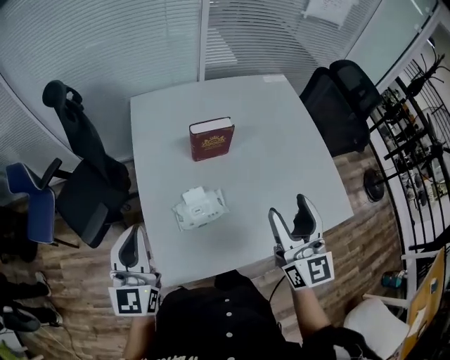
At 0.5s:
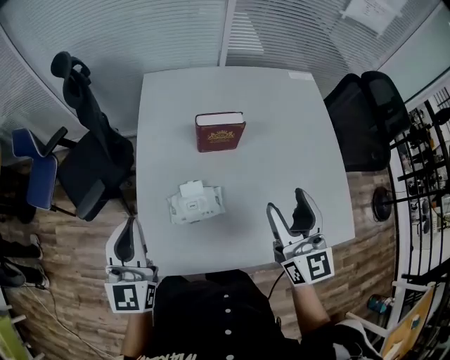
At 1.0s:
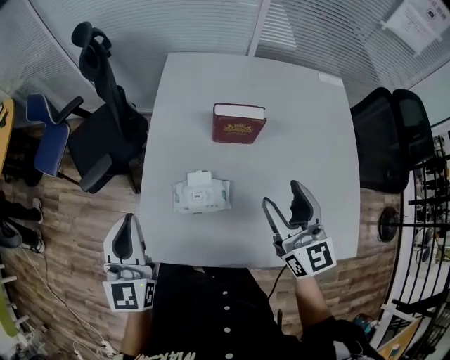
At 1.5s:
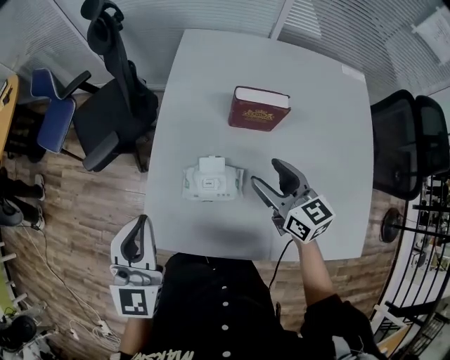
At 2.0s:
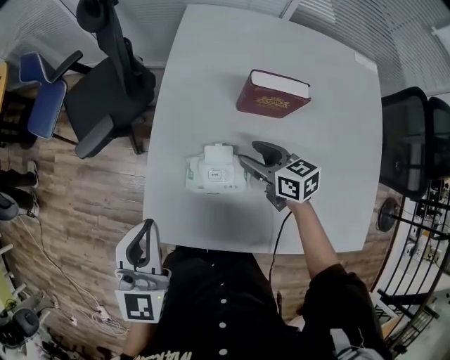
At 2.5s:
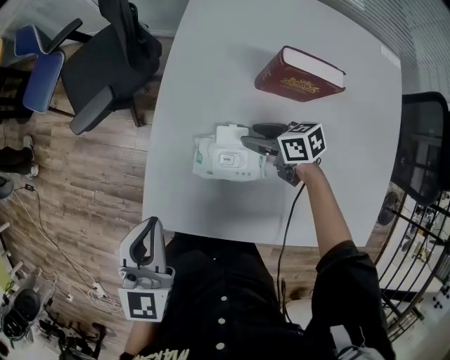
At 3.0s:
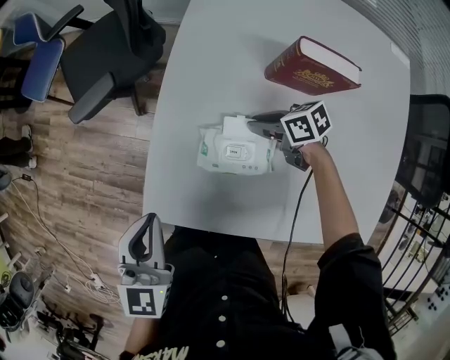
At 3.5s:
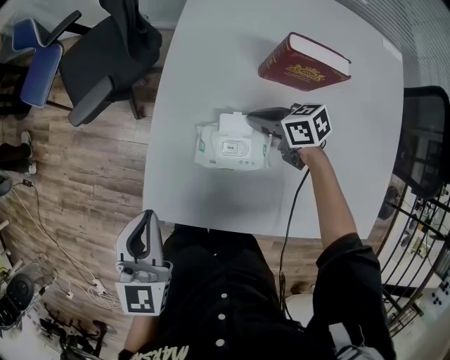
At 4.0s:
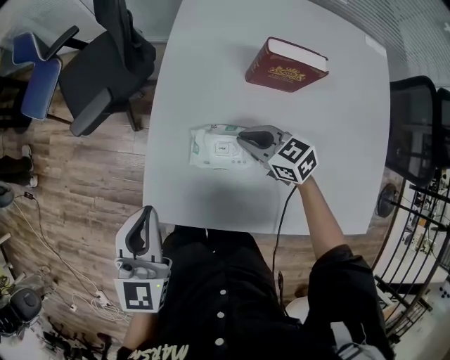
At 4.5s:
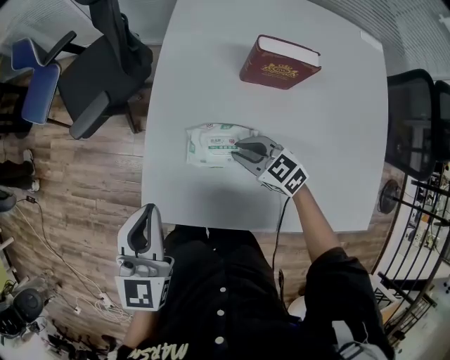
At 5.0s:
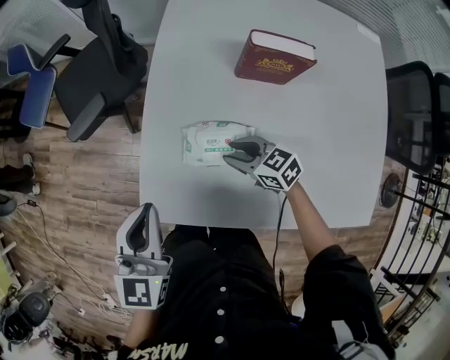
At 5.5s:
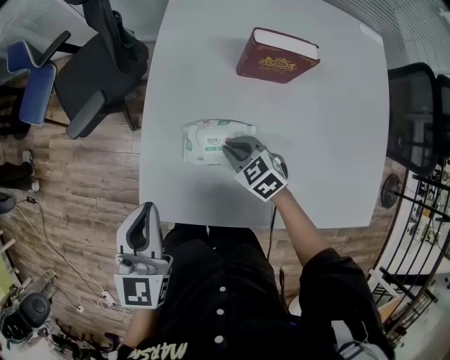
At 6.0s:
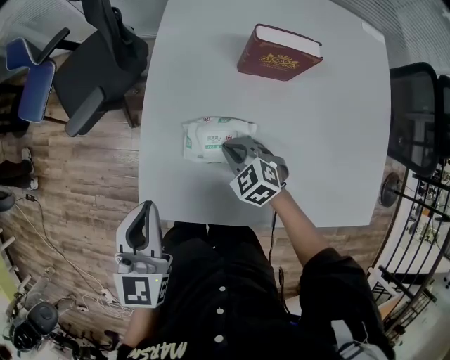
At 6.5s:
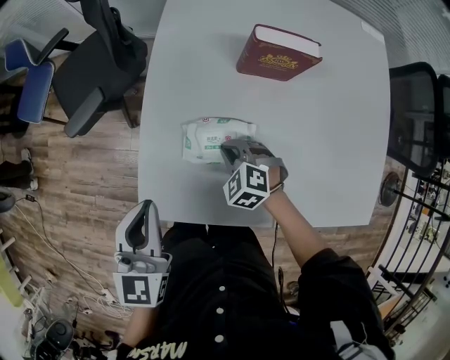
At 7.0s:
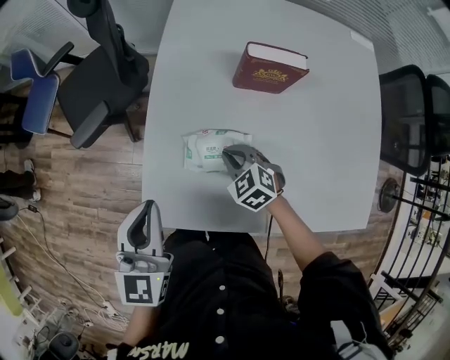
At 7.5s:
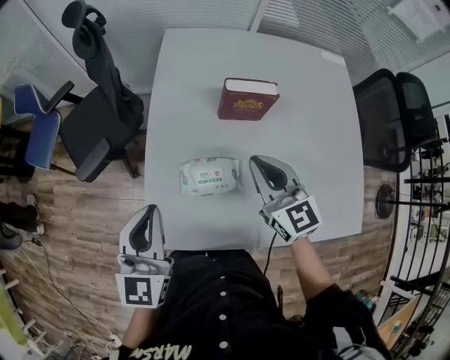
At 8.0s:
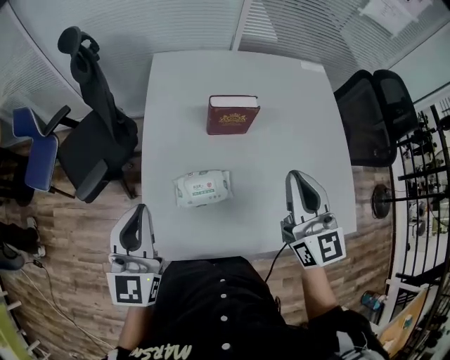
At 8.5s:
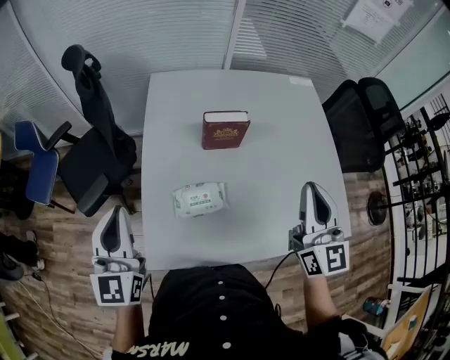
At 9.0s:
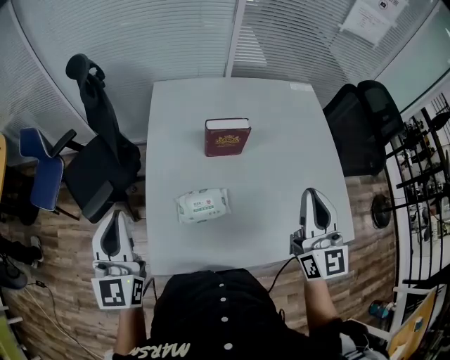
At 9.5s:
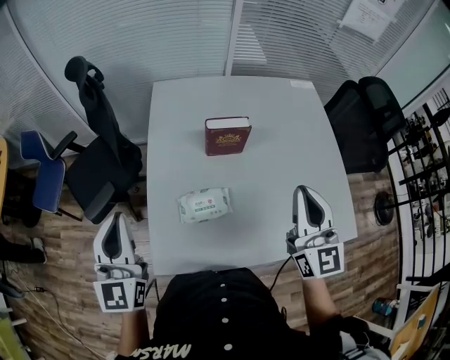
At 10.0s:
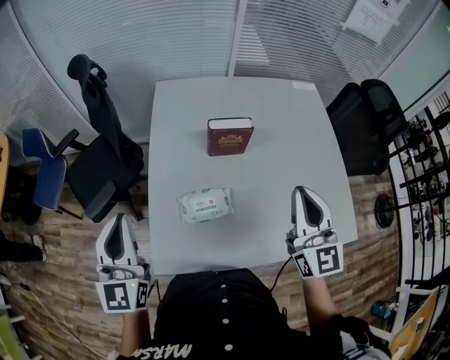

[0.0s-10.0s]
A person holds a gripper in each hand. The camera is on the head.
0.0s to 2.0s: The left gripper heads downward, covering roughly 10 cm, and rotates approximately 20 degrees, while the right gripper moves downward, approximately 25 cm, and tips its fingers downward by about 30 degrees.
2.0s to 4.0s: The right gripper moves to the left, approximately 5 cm, rotates some 20 degrees, and closes its fingers.
4.0s to 6.0s: The right gripper changes place by about 5 cm, rotates approximately 30 degrees, and opens, then closes again.
6.0s to 8.0s: The right gripper travels upward and to the right by roughly 40 cm, and tilts its fingers approximately 50 degrees upward; the left gripper moves upward, some 10 cm, and changes its angle by roughly 20 degrees.
8.0s to 10.0s: The left gripper shifts about 5 cm upward.

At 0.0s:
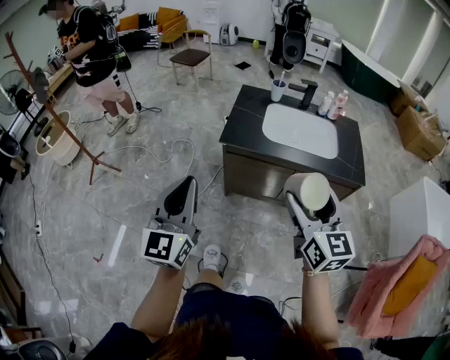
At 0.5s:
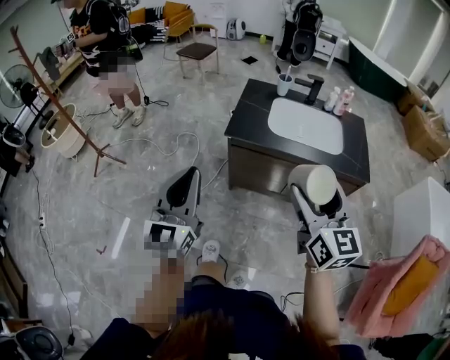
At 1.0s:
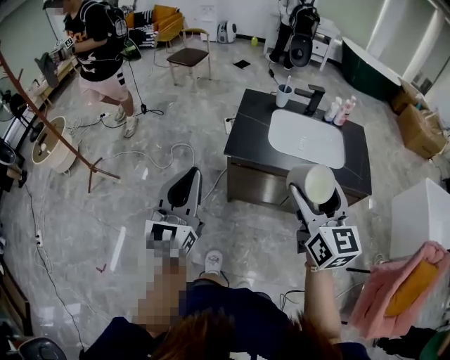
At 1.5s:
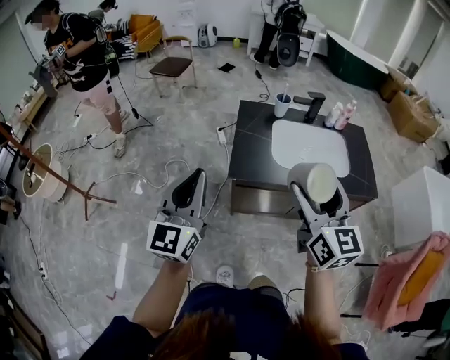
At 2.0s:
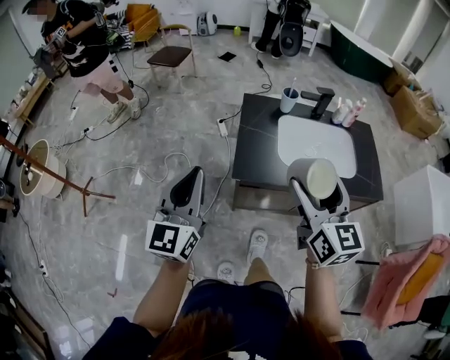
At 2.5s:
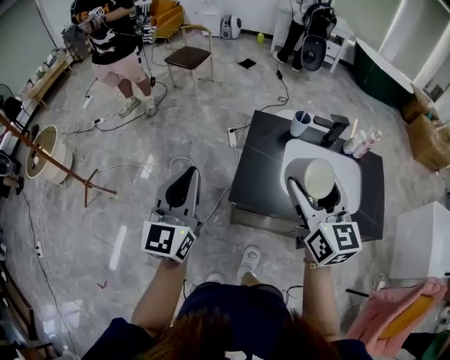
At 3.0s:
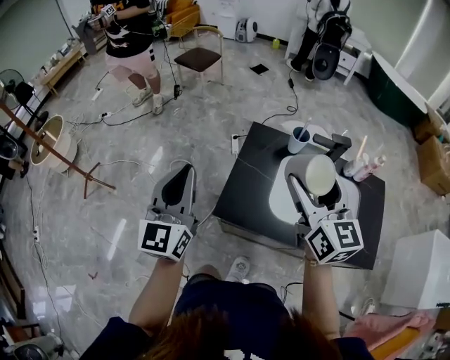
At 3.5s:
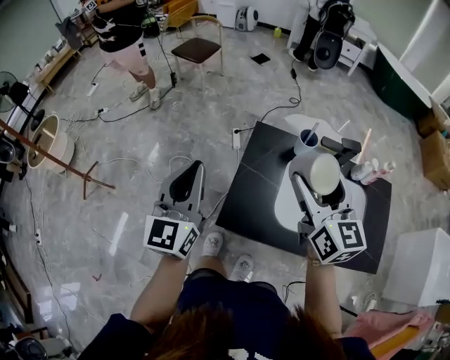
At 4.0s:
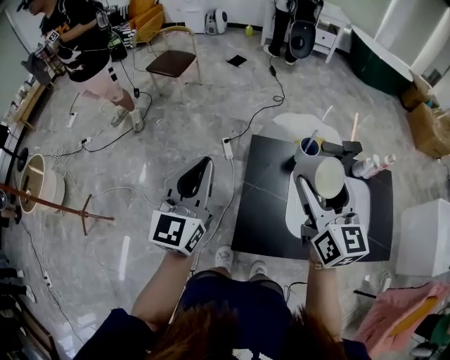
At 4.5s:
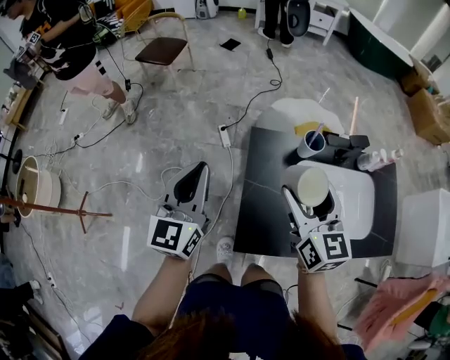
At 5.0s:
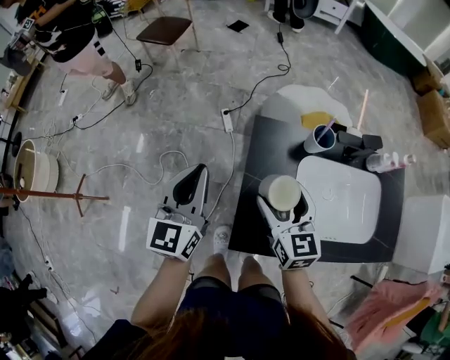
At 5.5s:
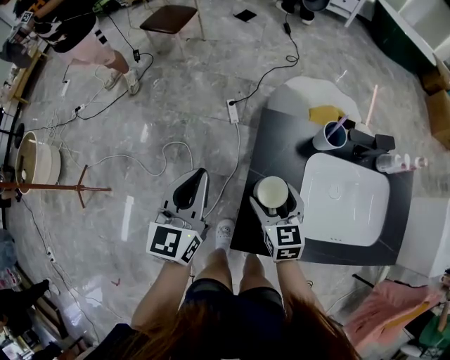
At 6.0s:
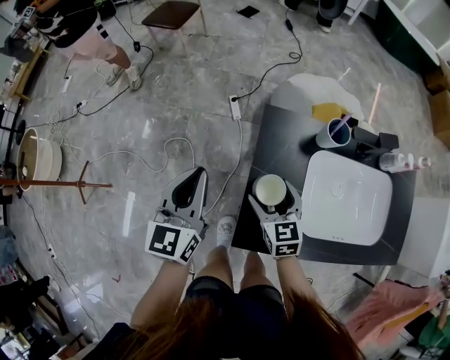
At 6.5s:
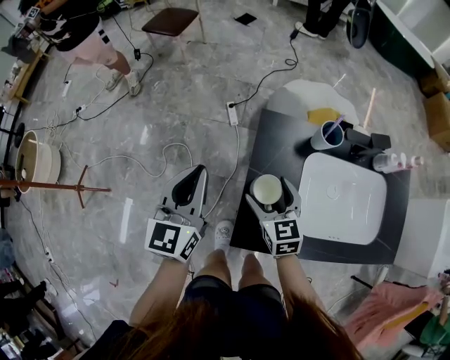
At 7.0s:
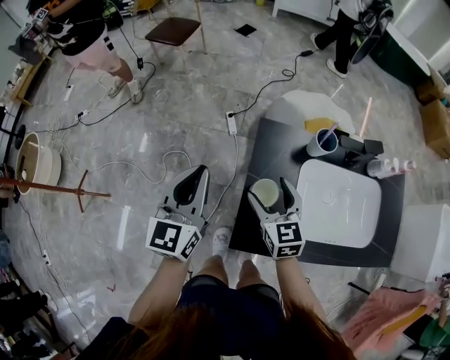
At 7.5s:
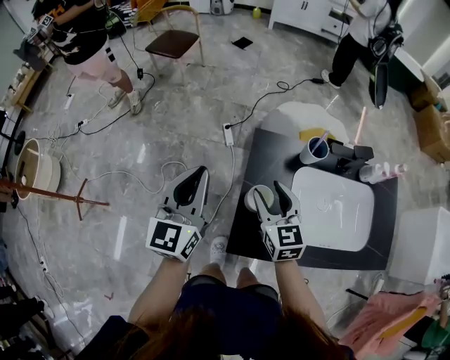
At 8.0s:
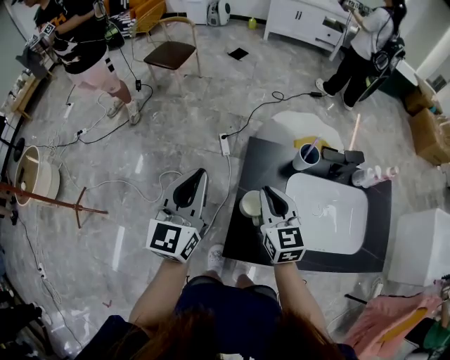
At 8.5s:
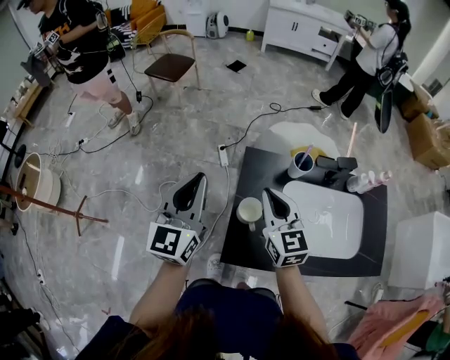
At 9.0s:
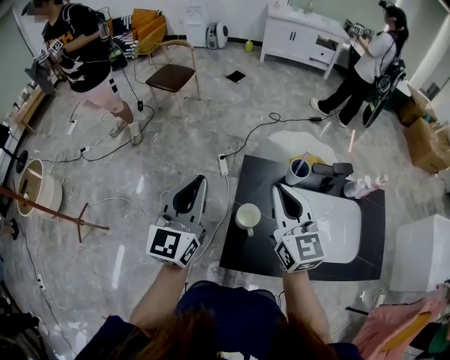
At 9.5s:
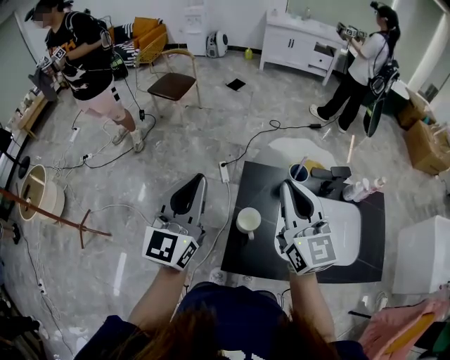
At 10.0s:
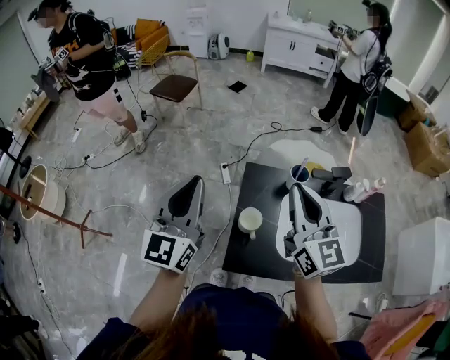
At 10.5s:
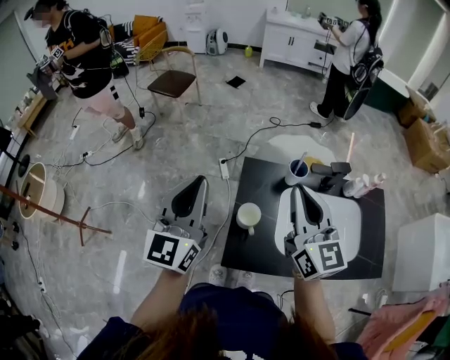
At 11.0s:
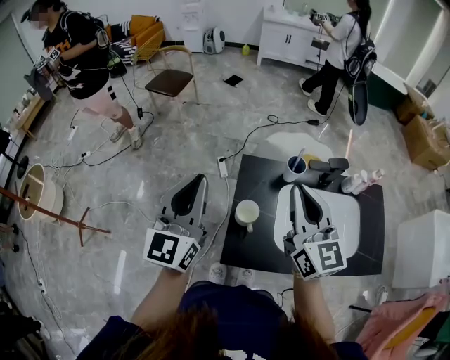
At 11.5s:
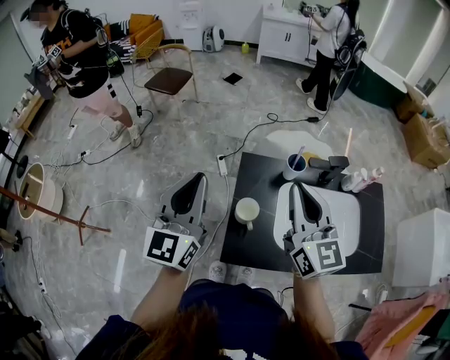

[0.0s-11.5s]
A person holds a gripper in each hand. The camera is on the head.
0.0s to 2.0s: The left gripper is displaced forward by some 30 cm. The right gripper heads forward and to the left, covering approximately 30 cm.
2.0s to 4.0s: Both grippers travel together forward, about 35 cm.
4.0s to 6.0s: The right gripper goes approximately 35 cm downward, and turns by about 30 degrees, while the left gripper goes some 20 cm downward.
6.0s to 7.5s: Both grippers travel together upward, some 10 cm. The right gripper closes its fingers.
7.5s to 9.5s: The right gripper heads upward, covering roughly 25 cm, changes its angle by some 20 degrees, and closes, while the left gripper heads upward, covering roughly 15 cm.
9.5s to 11.5s: There are only small adjustments of the grippers.

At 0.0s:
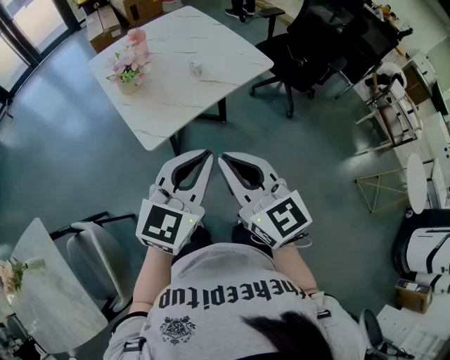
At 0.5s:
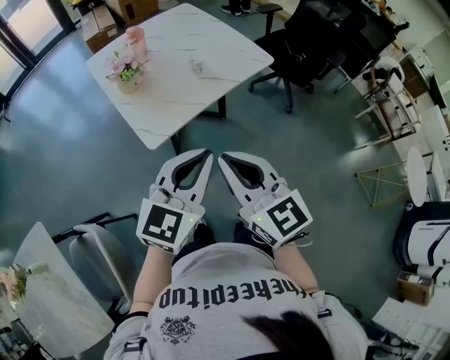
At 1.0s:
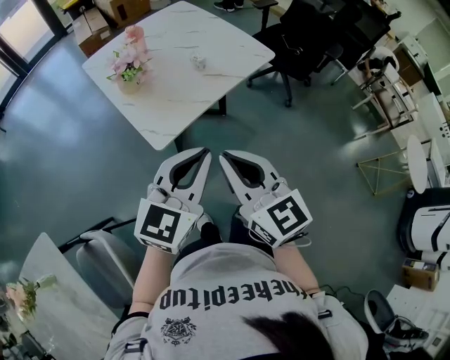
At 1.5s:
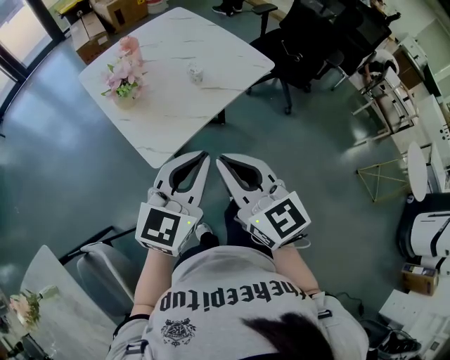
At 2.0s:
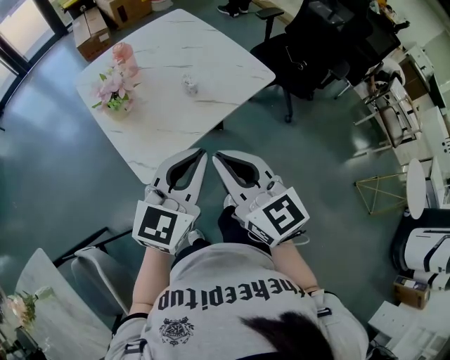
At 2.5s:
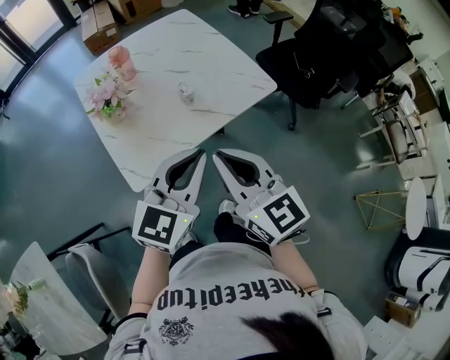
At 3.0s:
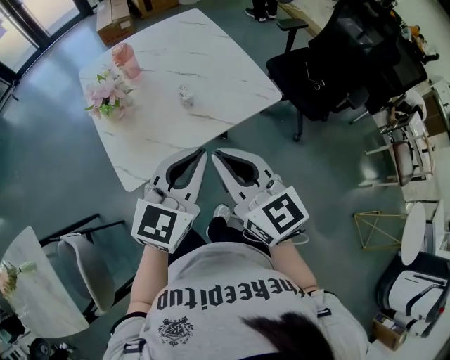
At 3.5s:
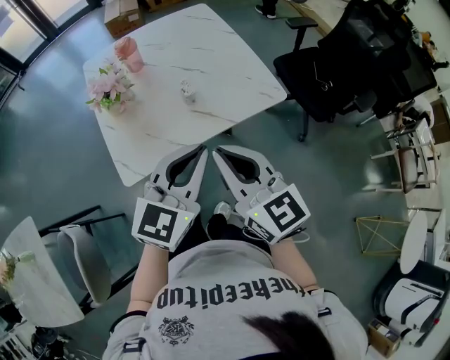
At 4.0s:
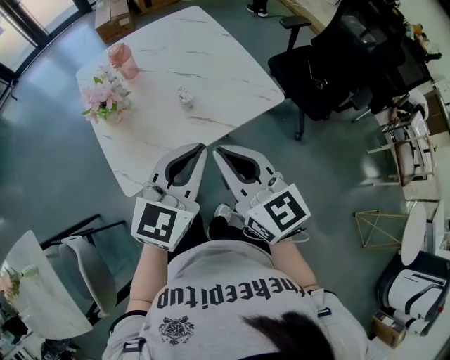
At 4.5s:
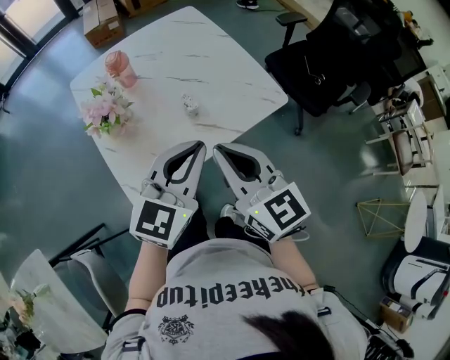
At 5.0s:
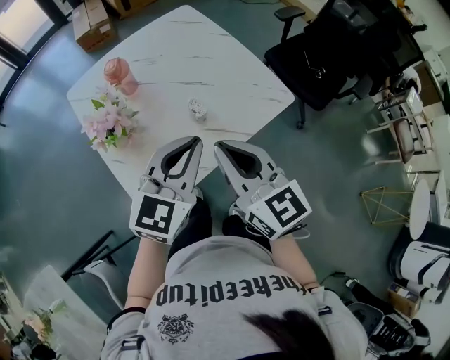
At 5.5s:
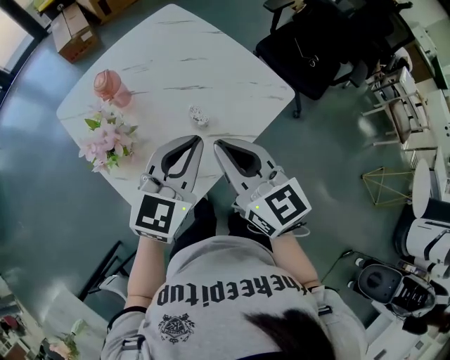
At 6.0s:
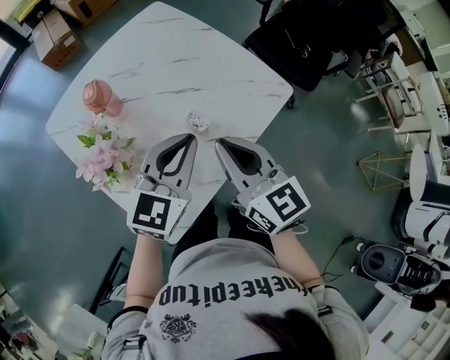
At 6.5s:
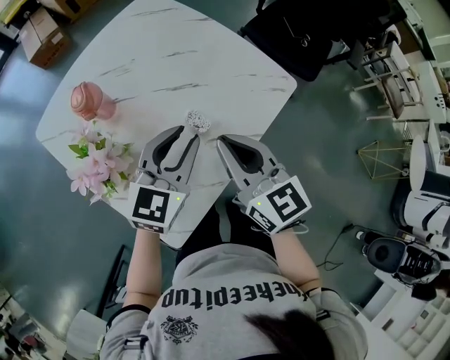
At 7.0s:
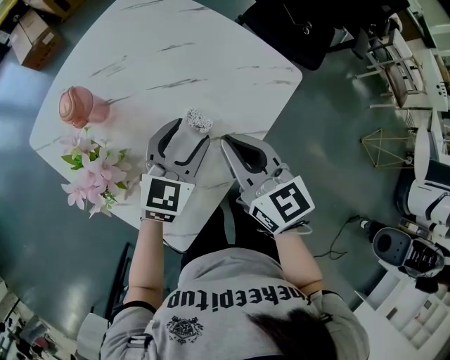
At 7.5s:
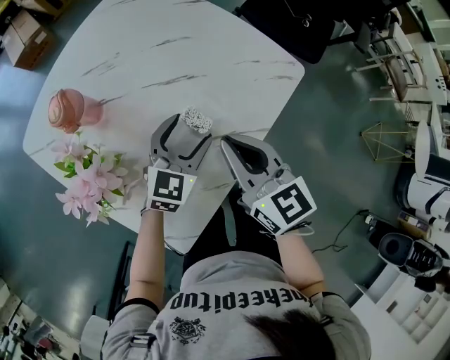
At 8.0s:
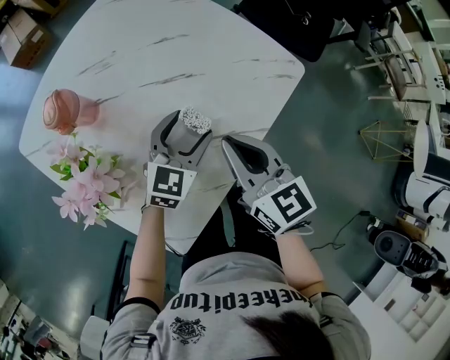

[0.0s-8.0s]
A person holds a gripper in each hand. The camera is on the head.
0.0s to 2.0s: The grippers both shift forward by roughly 15 cm.
2.0s to 4.0s: The two grippers go about 15 cm forward and to the right.
4.0s to 6.0s: Both grippers move forward and to the left, roughly 20 cm. The right gripper changes its angle by roughly 20 degrees.
6.0s to 8.0s: The left gripper goes some 15 cm downward, and opens its fingers. Meanwhile the right gripper shifts approximately 10 cm downward.
